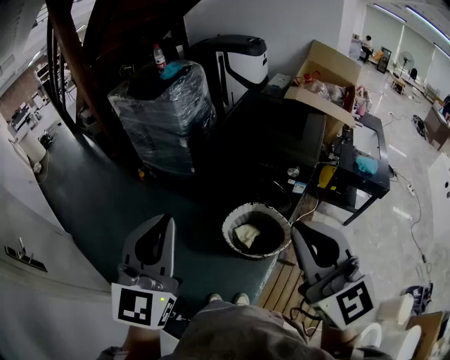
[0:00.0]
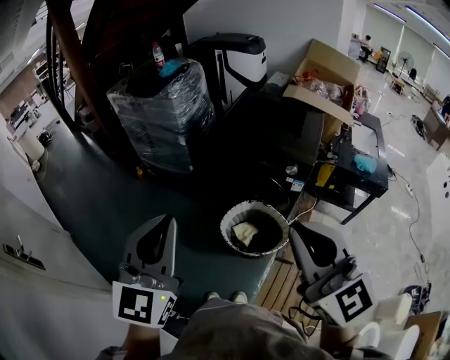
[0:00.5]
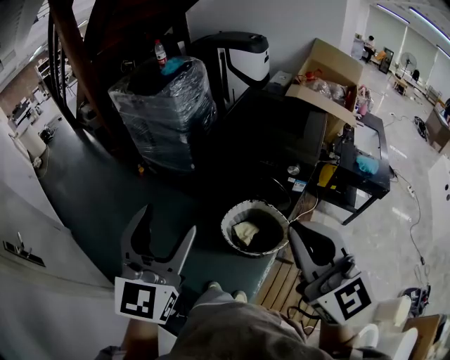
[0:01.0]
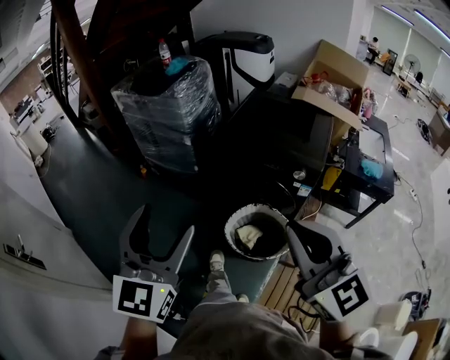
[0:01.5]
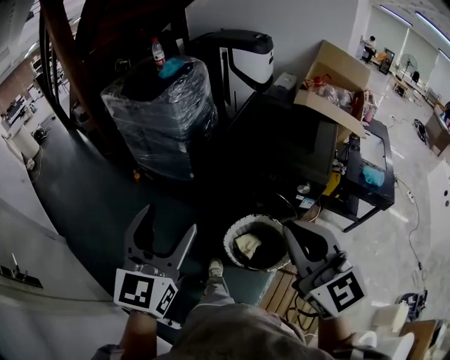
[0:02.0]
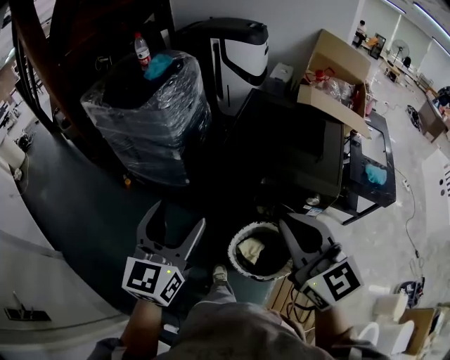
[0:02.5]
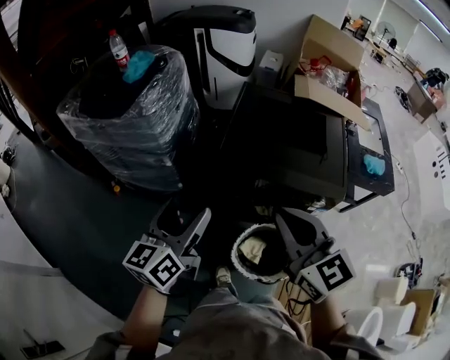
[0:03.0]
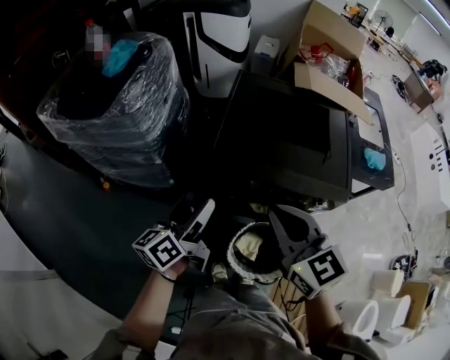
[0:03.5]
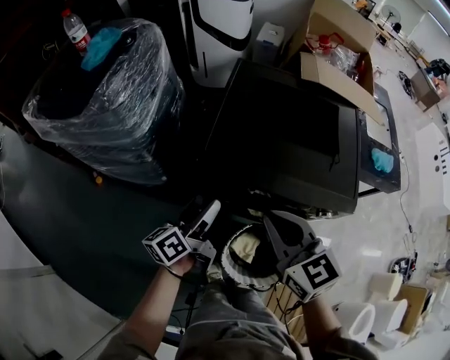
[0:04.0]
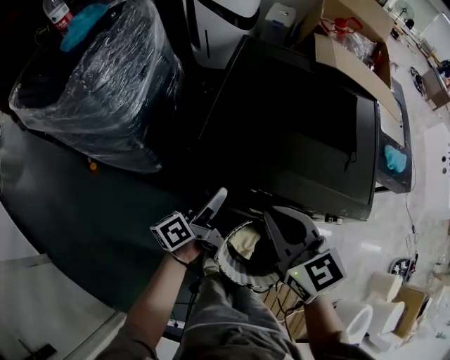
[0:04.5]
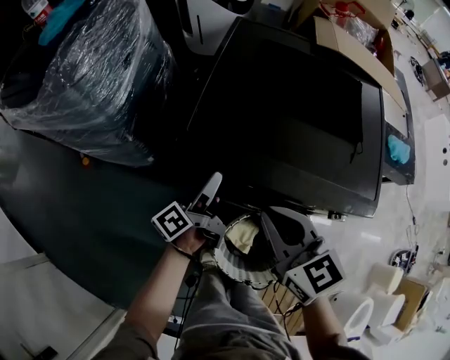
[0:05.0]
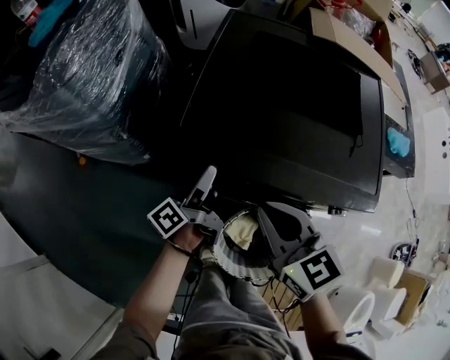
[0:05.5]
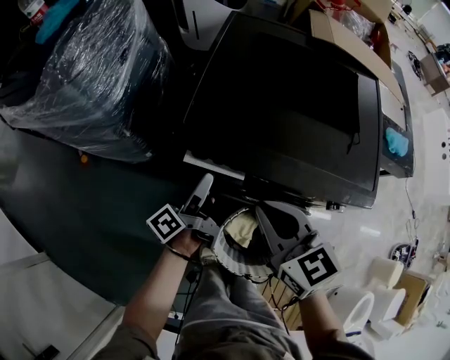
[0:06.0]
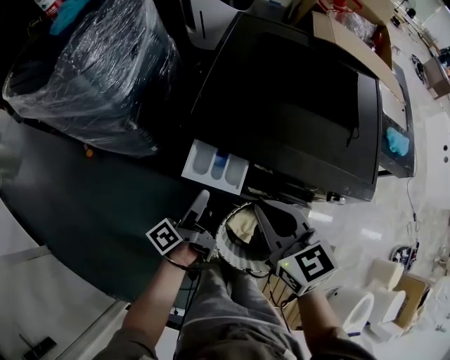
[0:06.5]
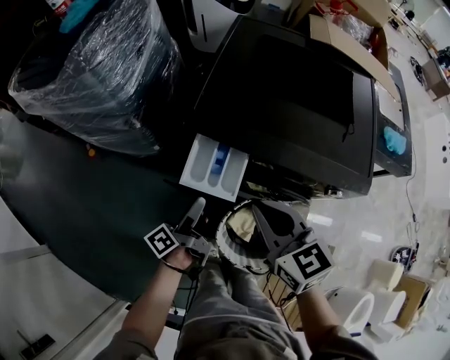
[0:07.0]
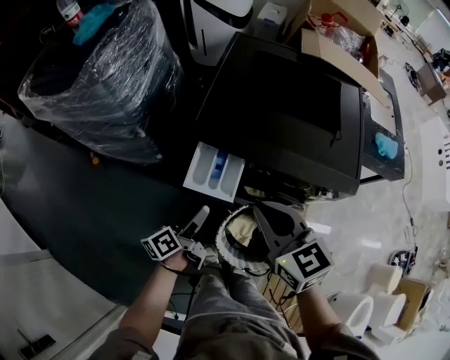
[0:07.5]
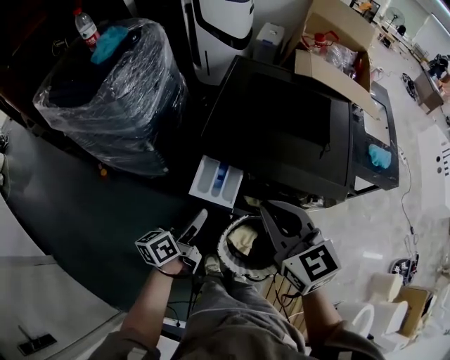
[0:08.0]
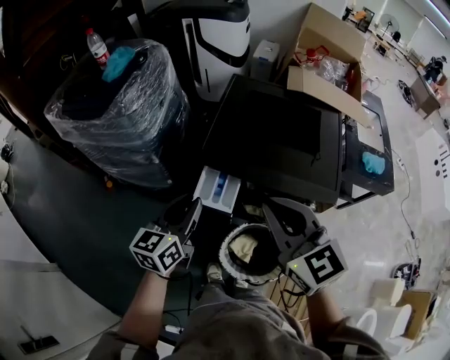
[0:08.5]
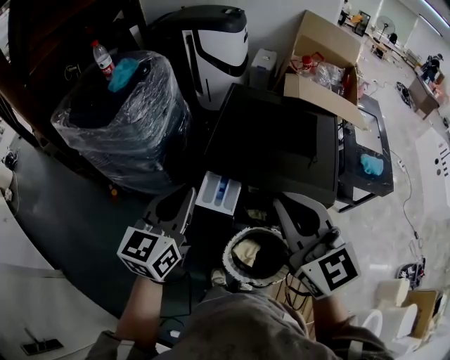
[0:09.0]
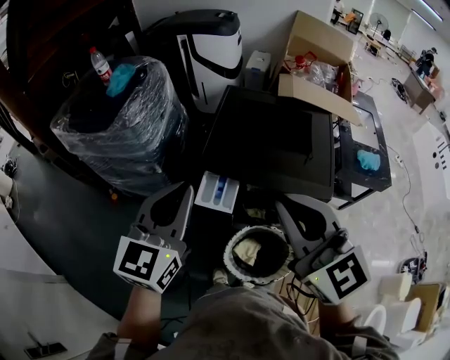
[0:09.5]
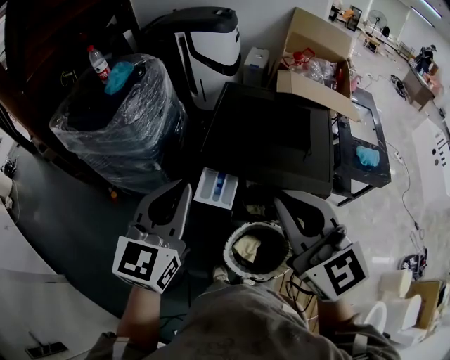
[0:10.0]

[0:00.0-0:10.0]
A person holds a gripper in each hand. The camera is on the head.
0:00.0 to 0:02.0: Both grippers travel together forward, some 15 cm. The left gripper opens.
0:02.0 to 0:04.0: Both grippers move forward and downward, approximately 50 cm. The right gripper changes its angle by some 30 degrees, while the left gripper rolls counterclockwise, seen from behind, by roughly 60 degrees.
0:04.0 to 0:06.0: Both grippers move downward, some 15 cm. The left gripper changes its angle by approximately 30 degrees.
0:06.0 to 0:08.0: The left gripper is displaced backward, upward and to the left by about 15 cm, and changes its angle by about 30 degrees. The right gripper moves upward and backward, approximately 15 cm.
0:08.0 to 0:10.0: The left gripper heads upward, covering about 30 cm, twists some 60 degrees clockwise, seen from behind, and closes; the right gripper is displaced upward by approximately 20 cm, and rotates about 20 degrees.

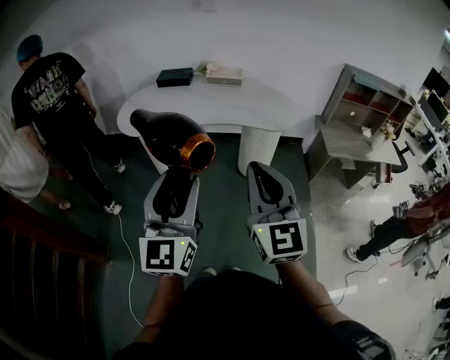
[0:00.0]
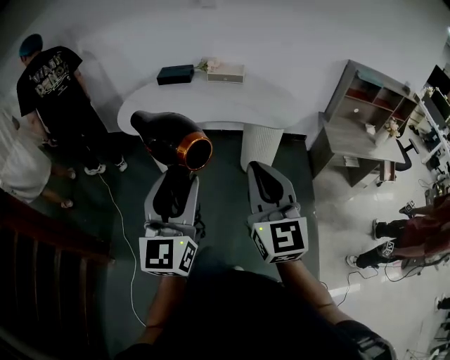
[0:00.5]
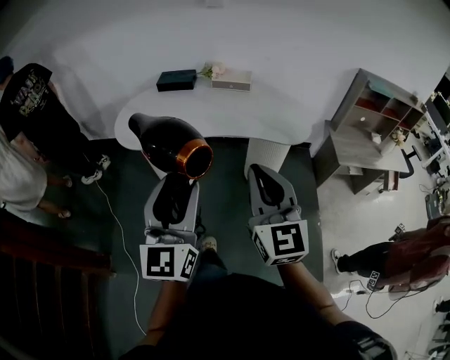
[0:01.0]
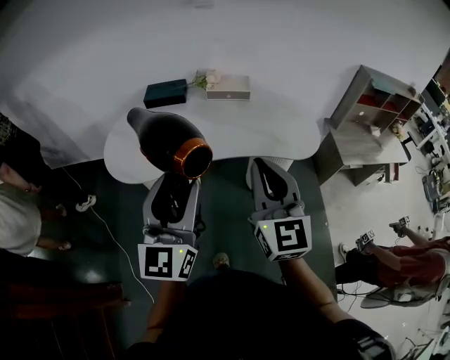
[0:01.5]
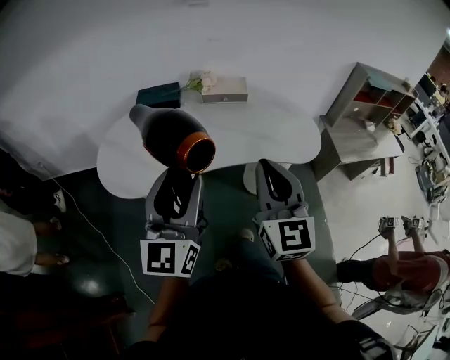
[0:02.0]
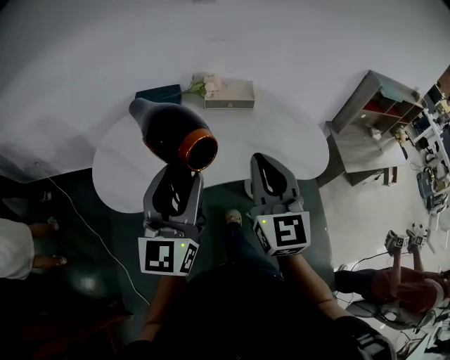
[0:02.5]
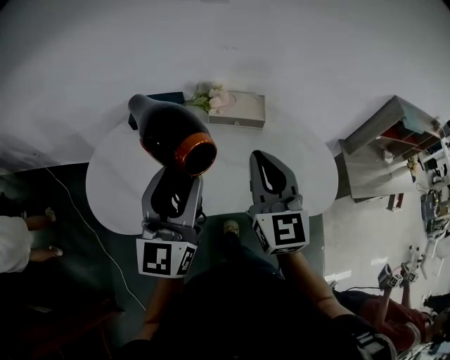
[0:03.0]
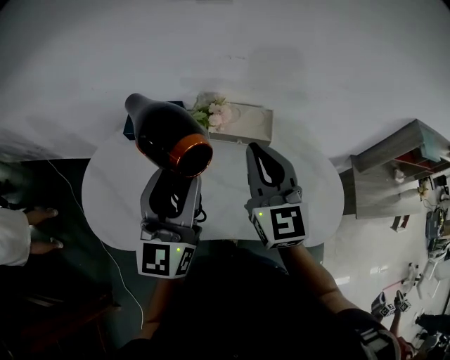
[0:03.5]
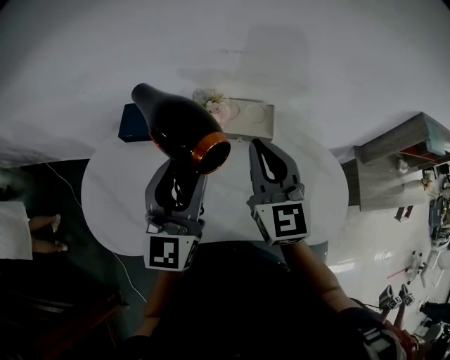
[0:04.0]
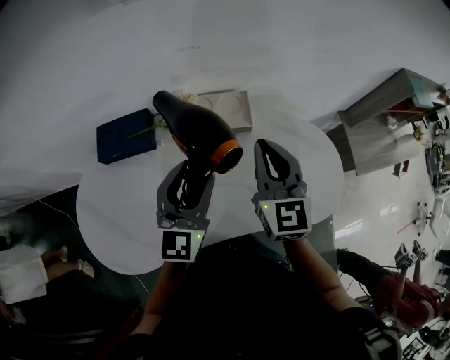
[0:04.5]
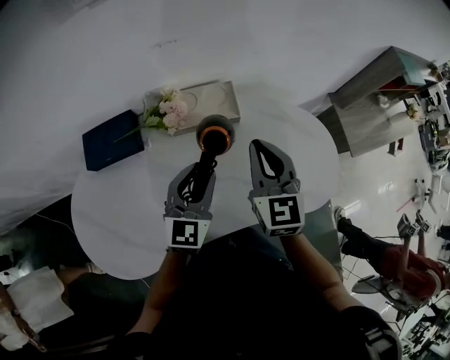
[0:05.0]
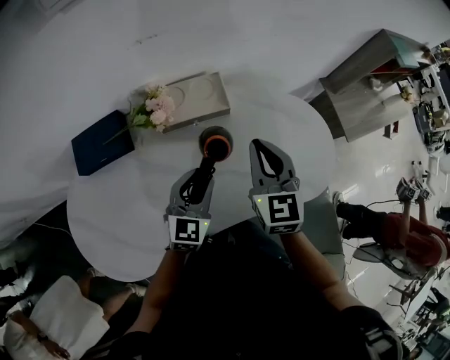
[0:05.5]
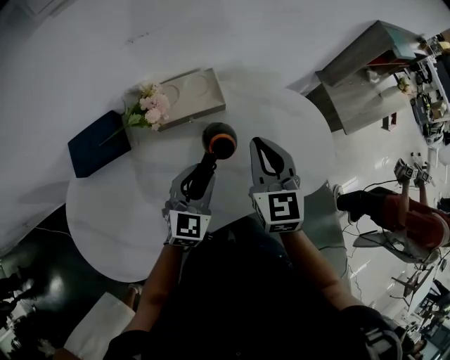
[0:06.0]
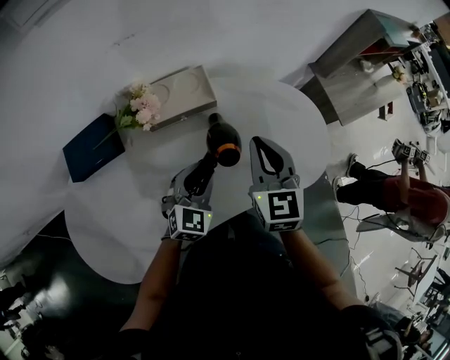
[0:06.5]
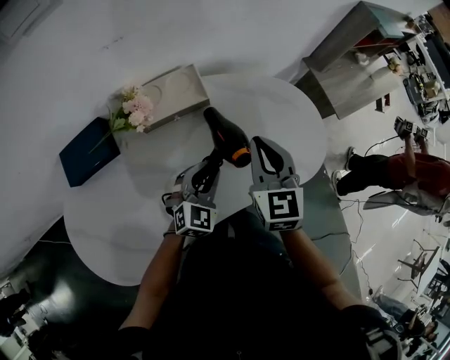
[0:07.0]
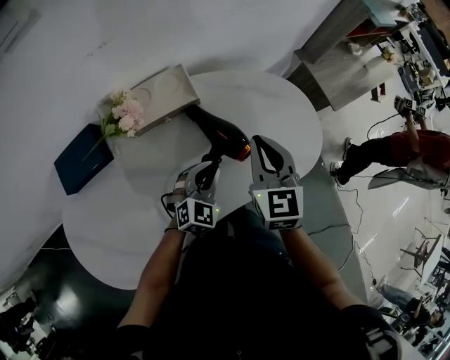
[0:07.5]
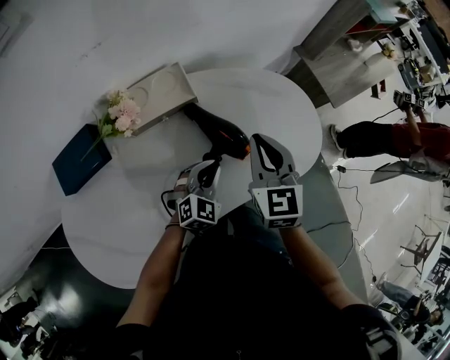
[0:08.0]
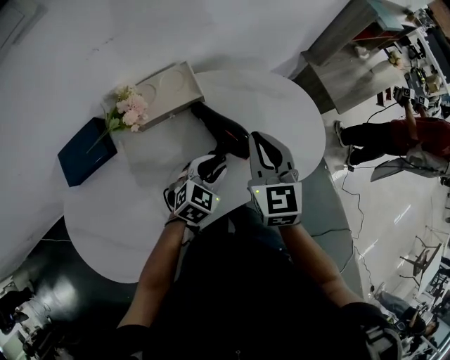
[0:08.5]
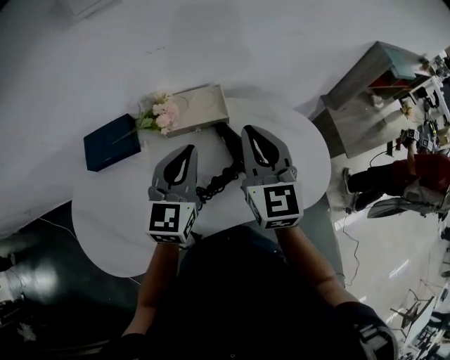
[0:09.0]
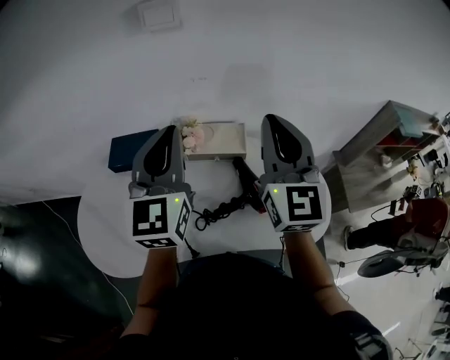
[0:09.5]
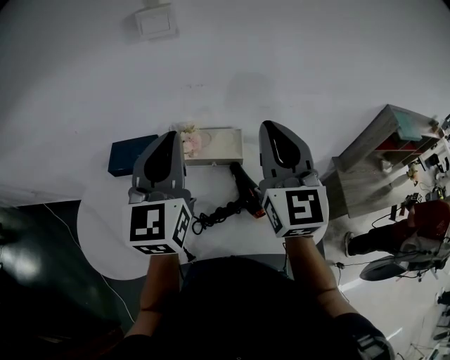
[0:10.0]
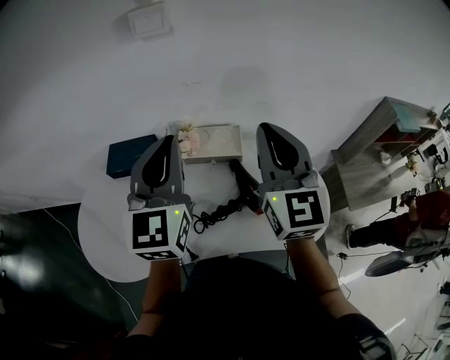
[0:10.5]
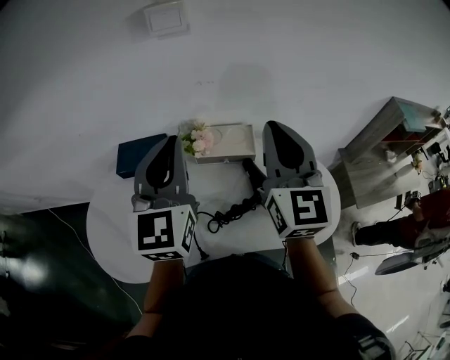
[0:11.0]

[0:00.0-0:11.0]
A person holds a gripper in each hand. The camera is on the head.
0:00.0 to 0:02.0: Both grippers travel together forward, about 35 cm.
0:02.0 to 0:03.5: Both grippers move forward, roughly 35 cm.
0:03.5 to 0:05.5: The left gripper shifts approximately 25 cm downward, and angles its fingers downward, by some 30 degrees. Meanwhile the right gripper goes roughly 15 cm downward, and turns by approximately 30 degrees.
0:05.5 to 0:07.5: The right gripper moves to the right, about 5 cm. Meanwhile the left gripper is displaced to the right and downward by roughly 10 cm, changes its angle by approximately 30 degrees, and closes up.
0:07.5 to 0:09.0: The left gripper moves upward and to the left, roughly 25 cm, and changes its angle by about 40 degrees, while the right gripper moves upward and to the left, some 15 cm, and turns by approximately 20 degrees.
0:09.0 to 0:11.0: The left gripper goes roughly 20 cm upward and to the left, and swivels some 20 degrees. Meanwhile the right gripper moves upward, some 15 cm.
